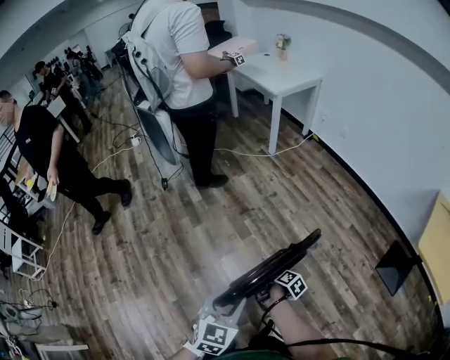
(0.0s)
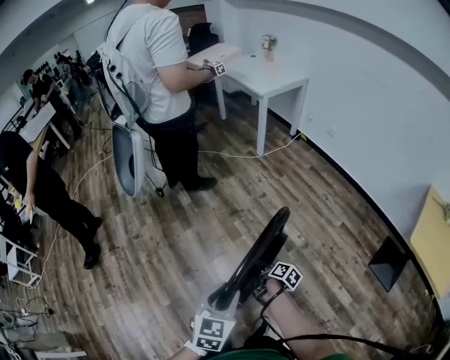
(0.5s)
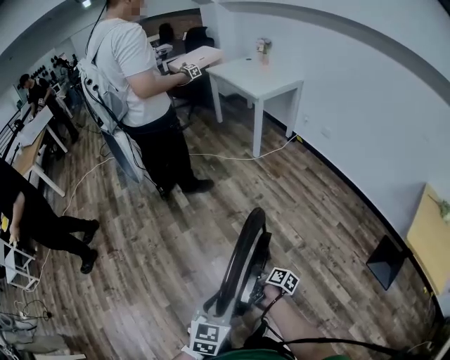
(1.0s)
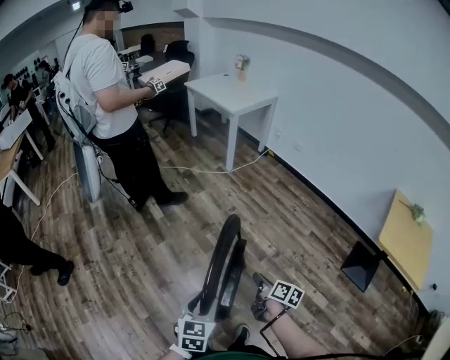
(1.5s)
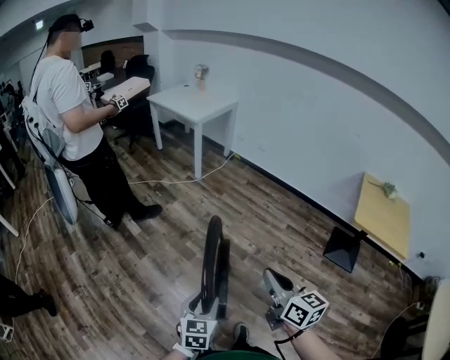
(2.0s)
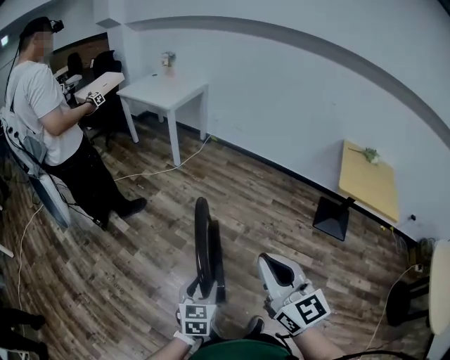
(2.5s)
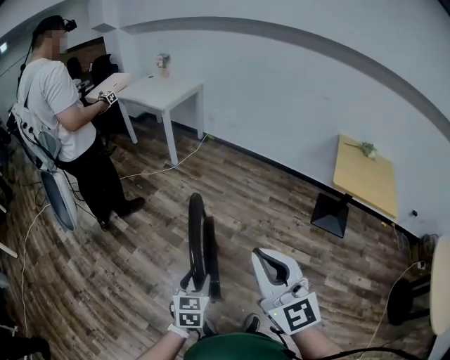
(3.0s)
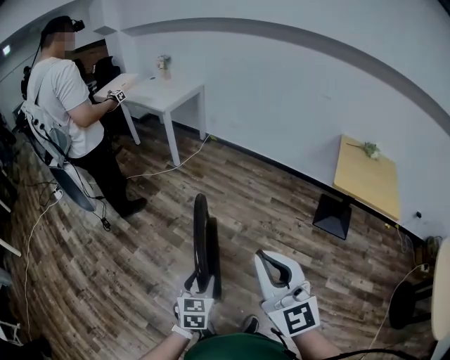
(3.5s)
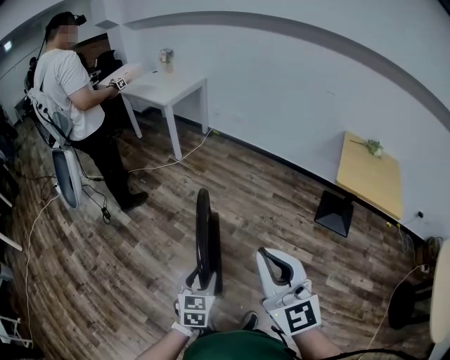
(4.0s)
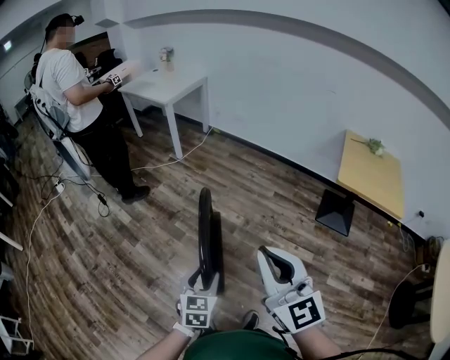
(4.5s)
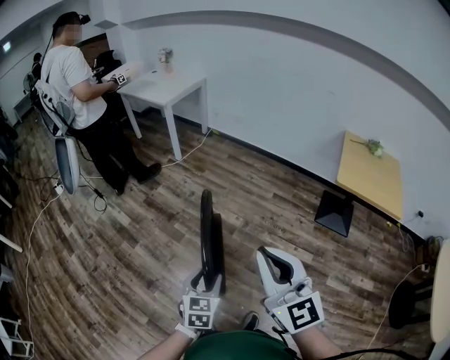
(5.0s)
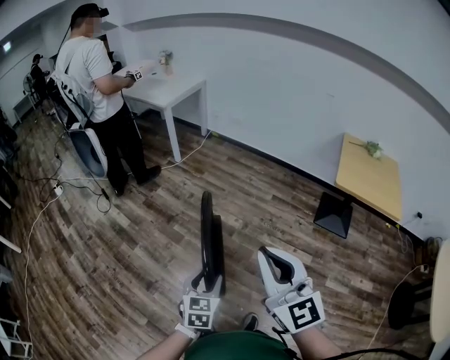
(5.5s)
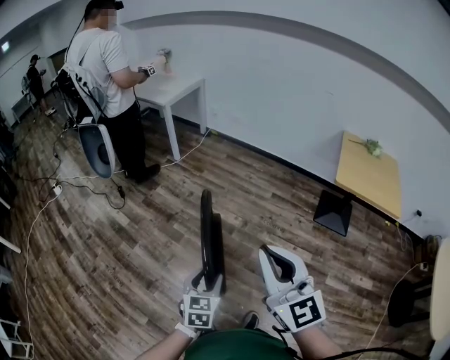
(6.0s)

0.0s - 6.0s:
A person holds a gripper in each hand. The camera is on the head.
0.0s - 2.0s: The right gripper moves upward, about 35 cm, twists approximately 50 degrees counterclockwise, seen from behind, and closes.
2.0s - 4.0s: The right gripper moves upward, to the right and backward, about 15 cm, and swivels roughly 40 degrees; the left gripper heads to the right, covering approximately 10 cm.
4.0s - 6.0s: Neither gripper changes place.

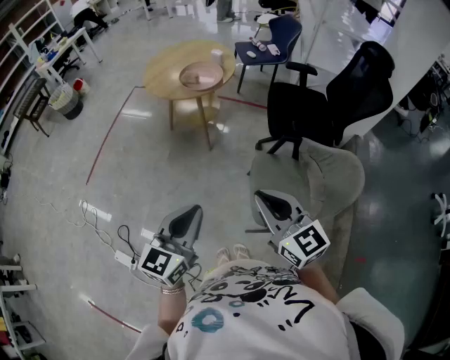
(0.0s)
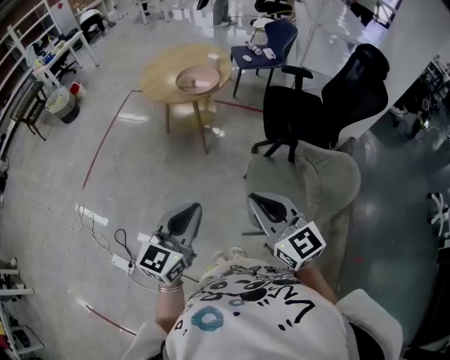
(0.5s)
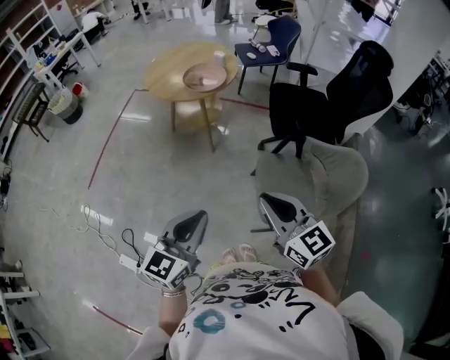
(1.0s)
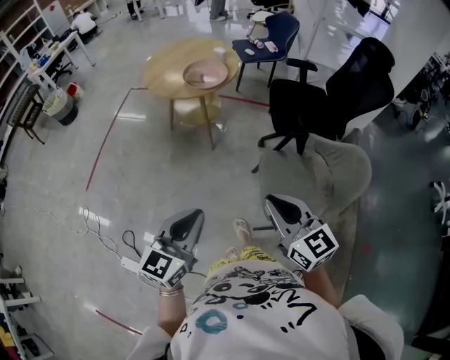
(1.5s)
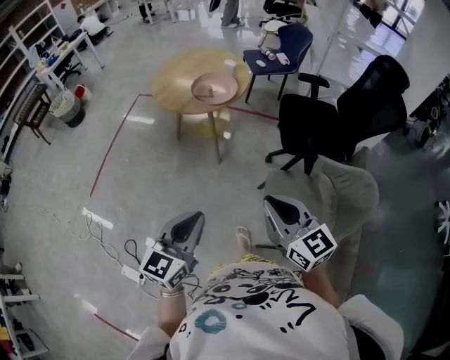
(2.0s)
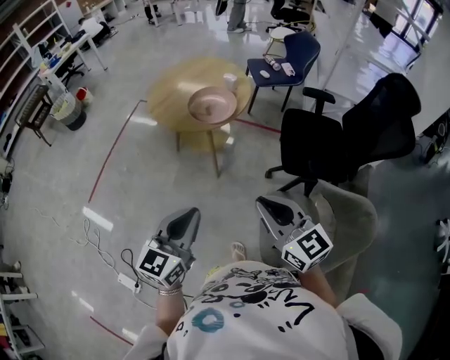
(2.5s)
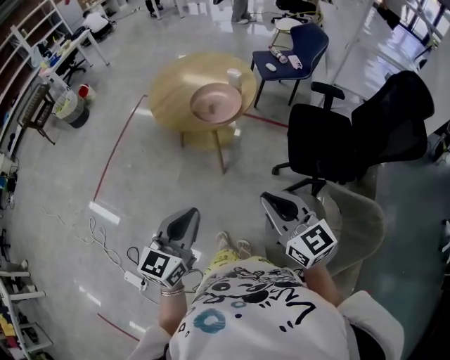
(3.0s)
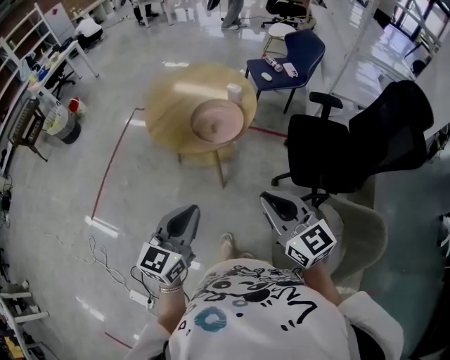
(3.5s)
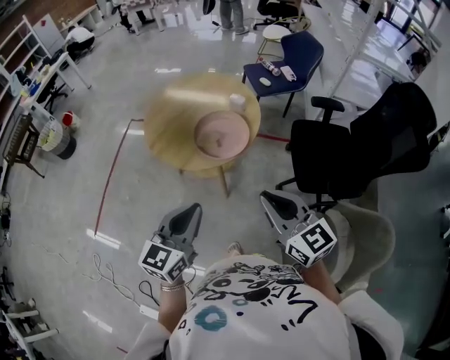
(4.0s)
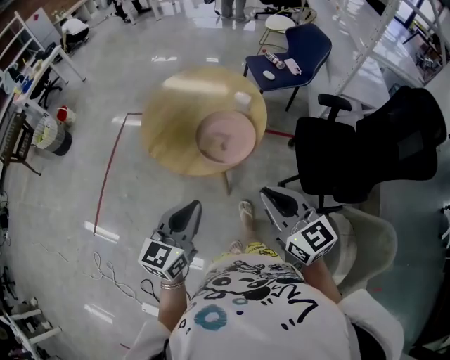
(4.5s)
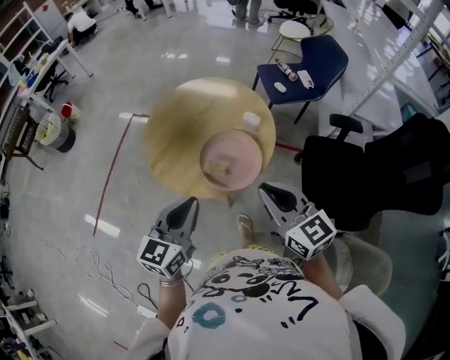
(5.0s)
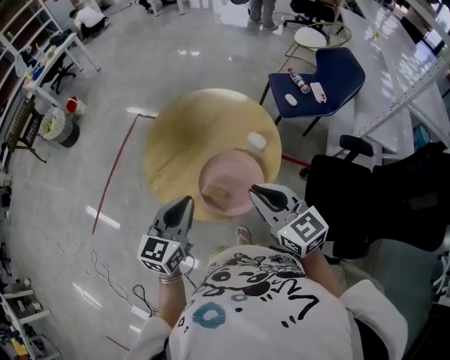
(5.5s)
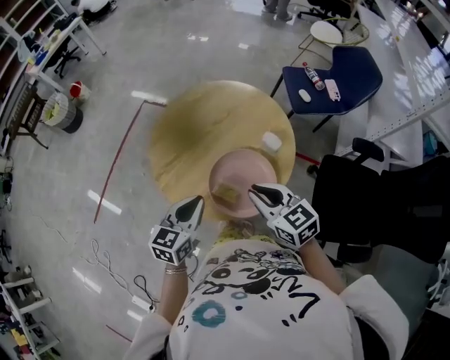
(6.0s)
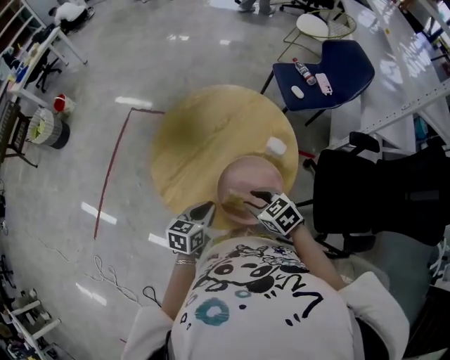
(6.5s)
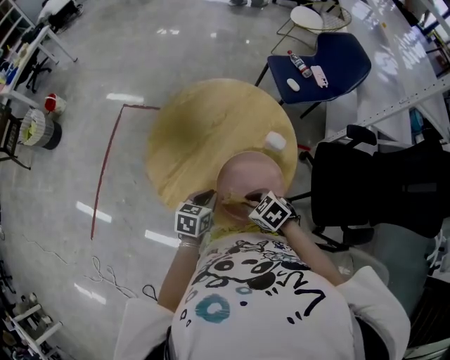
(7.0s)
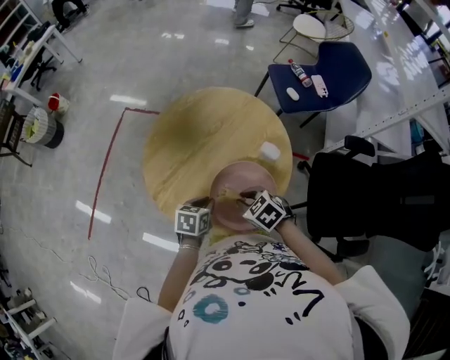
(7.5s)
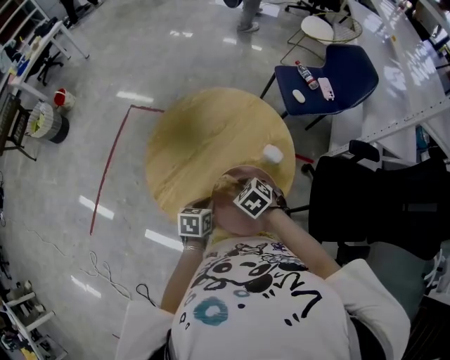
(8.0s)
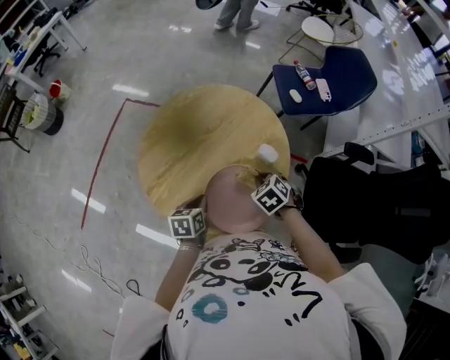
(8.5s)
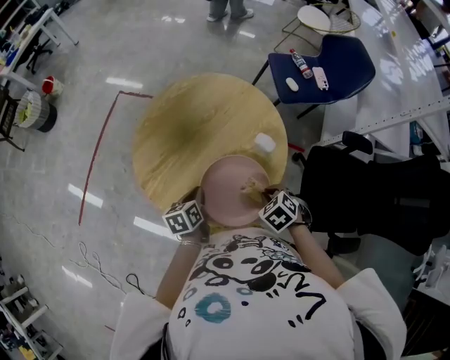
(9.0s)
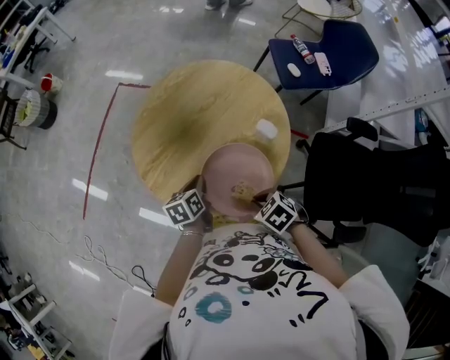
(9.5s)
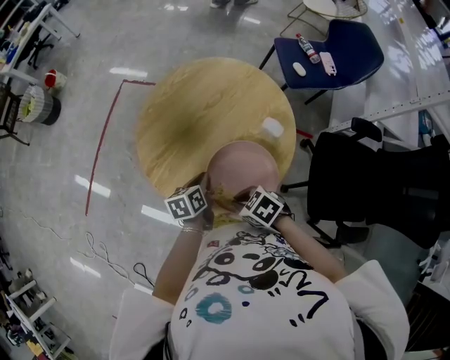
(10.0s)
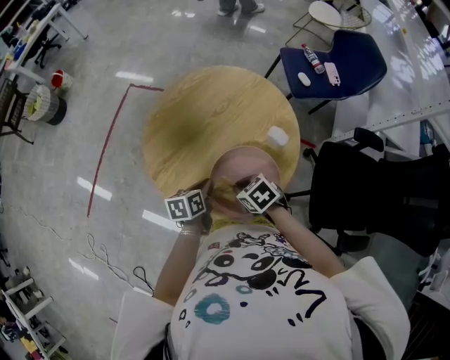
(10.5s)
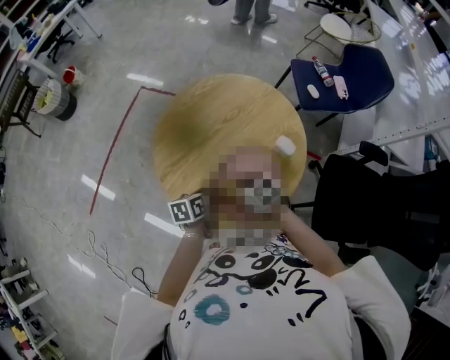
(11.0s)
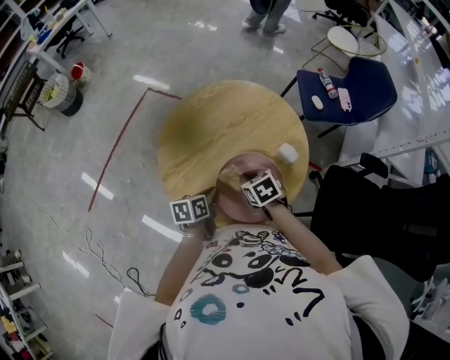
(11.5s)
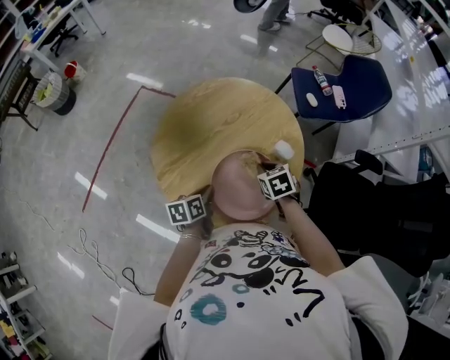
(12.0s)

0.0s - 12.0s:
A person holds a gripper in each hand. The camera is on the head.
0.0s - 2.0s: The left gripper goes about 10 cm forward and to the left. Meanwhile the right gripper travels forward by roughly 10 cm.
2.0s - 4.0s: Both grippers travel together forward, some 35 cm.
4.0s - 6.0s: The two grippers go about 35 cm forward. The right gripper swivels roughly 30 degrees.
6.0s - 8.0s: The right gripper shifts approximately 20 cm downward and forward, and tips its fingers downward by approximately 40 degrees, while the left gripper shifts some 15 cm downward, and swivels about 30 degrees.
8.0s - 10.0s: The right gripper shifts by roughly 15 cm, and turns by some 20 degrees. The left gripper swivels approximately 20 degrees.
10.0s - 12.0s: The right gripper shifts by about 20 cm, and changes its angle by approximately 30 degrees.

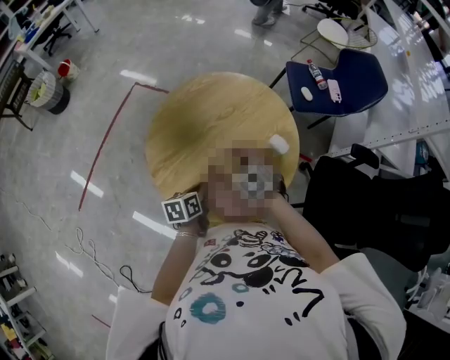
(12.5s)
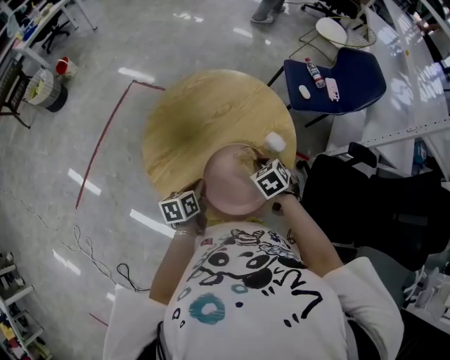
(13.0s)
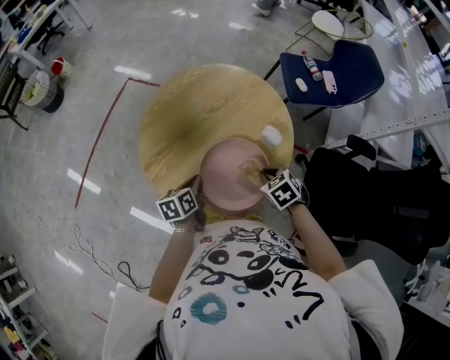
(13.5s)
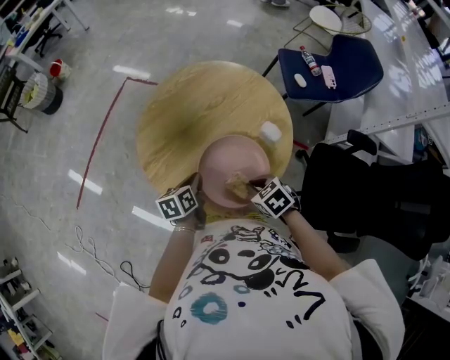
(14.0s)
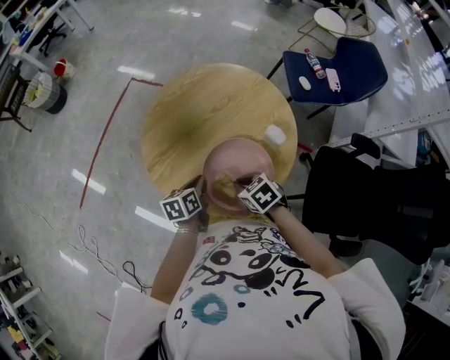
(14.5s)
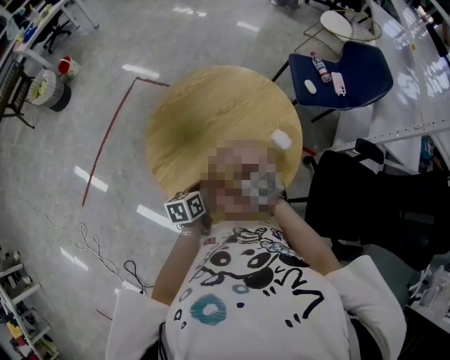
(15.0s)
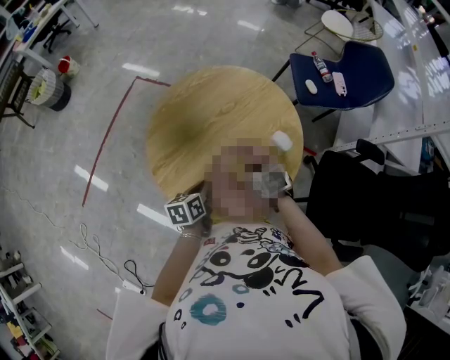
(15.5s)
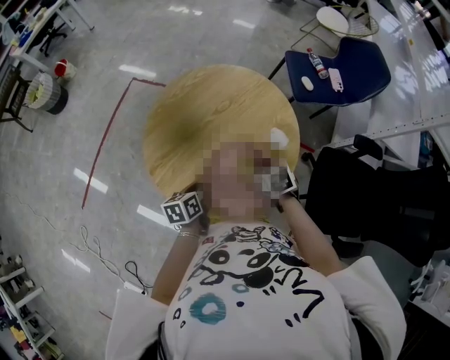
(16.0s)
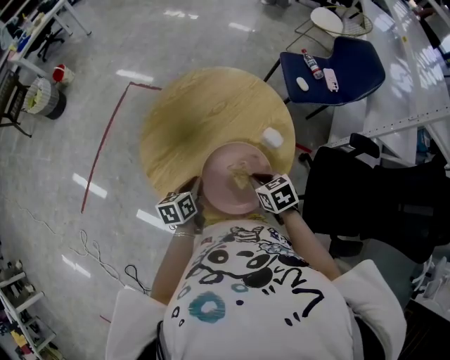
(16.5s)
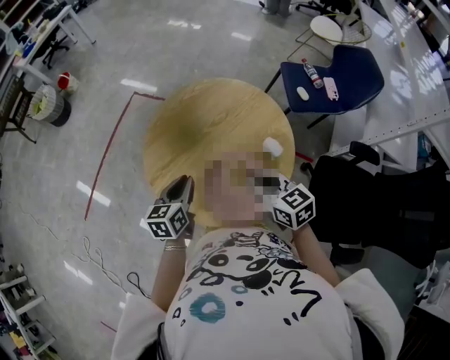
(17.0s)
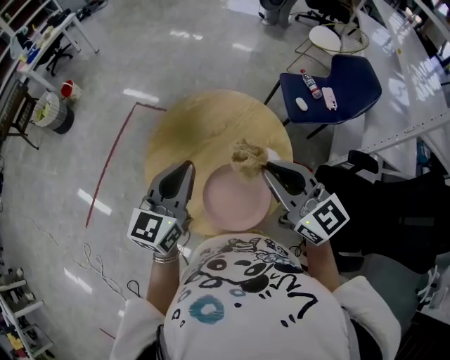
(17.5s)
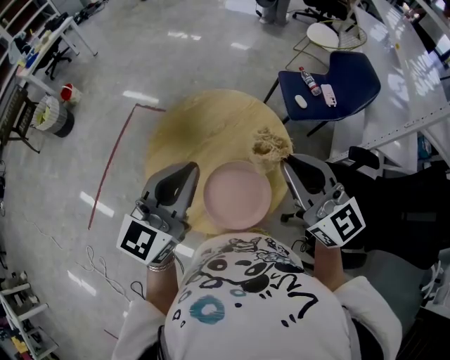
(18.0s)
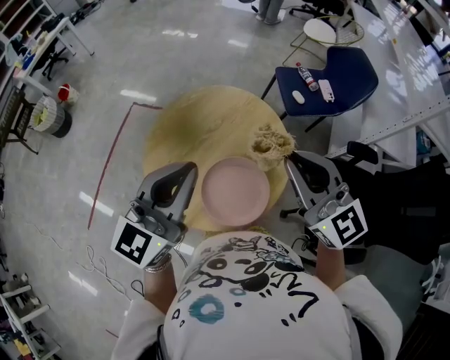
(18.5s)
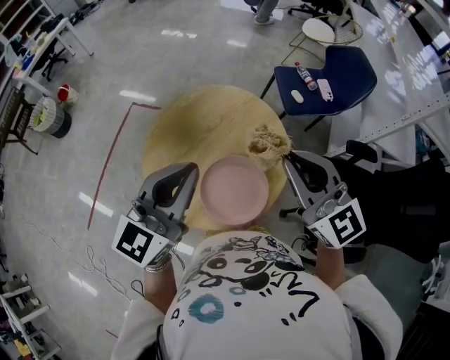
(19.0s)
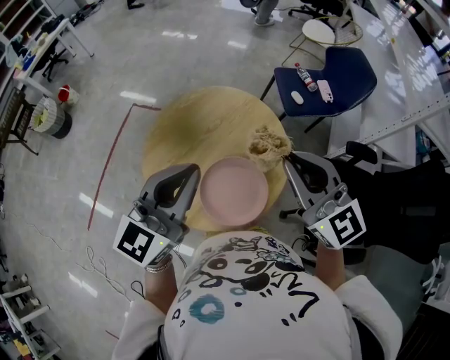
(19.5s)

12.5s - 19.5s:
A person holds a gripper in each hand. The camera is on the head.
12.5s - 14.5s: The right gripper travels backward by about 10 cm.
14.5s - 16.0s: The right gripper shifts roughly 10 cm to the right and forward.
16.0s - 17.5s: Both grippers travel together upward, some 30 cm. The left gripper tips its fingers upward by approximately 30 degrees, while the right gripper angles its fingers upward, by about 60 degrees.
17.5s - 19.5s: The left gripper shifts some 10 cm upward. Meanwhile the right gripper shifts roughly 5 cm upward.

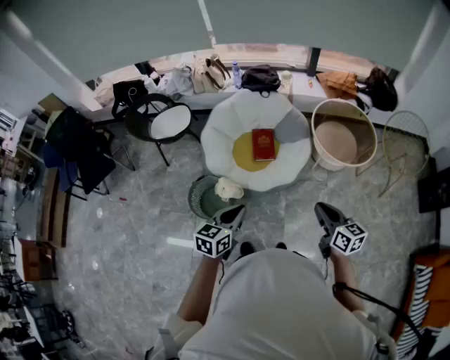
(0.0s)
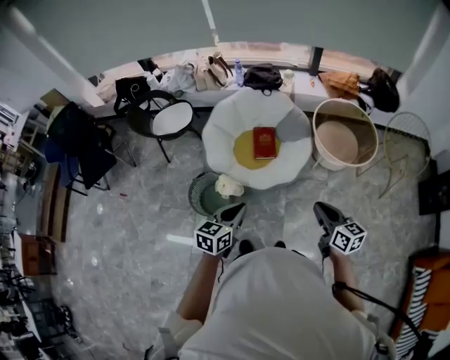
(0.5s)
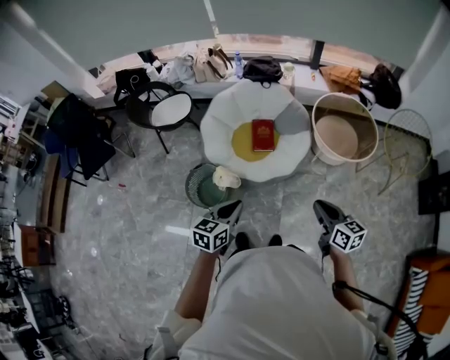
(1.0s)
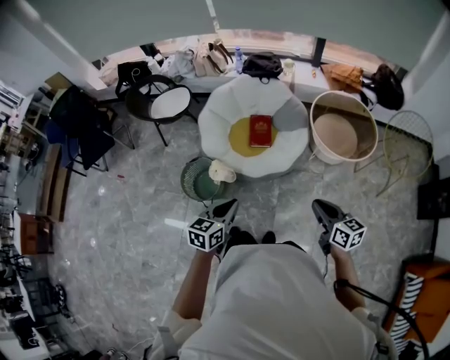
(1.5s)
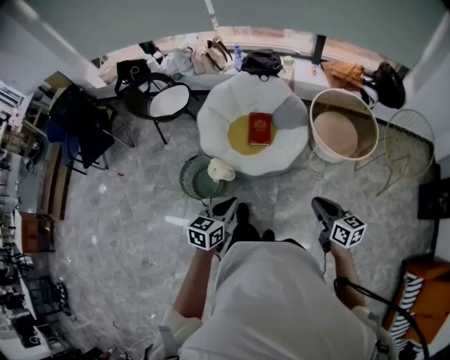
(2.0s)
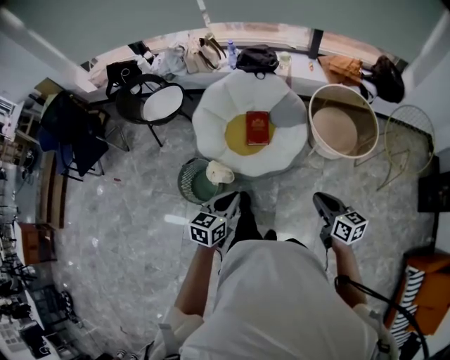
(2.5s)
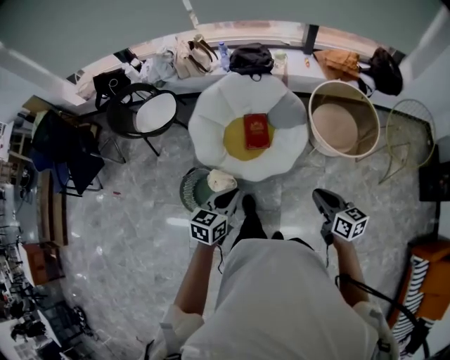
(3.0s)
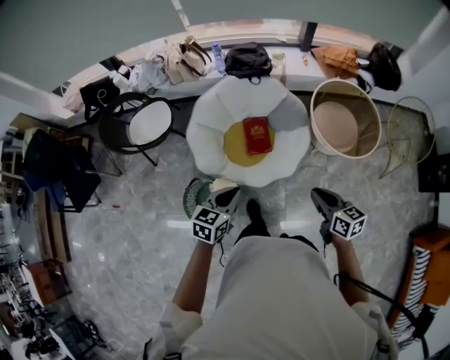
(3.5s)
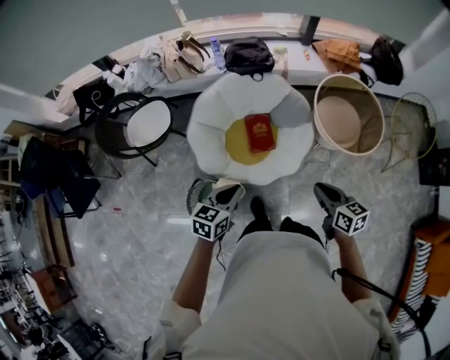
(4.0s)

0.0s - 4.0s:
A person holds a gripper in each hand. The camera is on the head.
0.0s - 2.0s: Both grippers travel together to the right, approximately 5 cm.
2.0s - 4.0s: The two grippers go about 30 cm forward and to the left.
